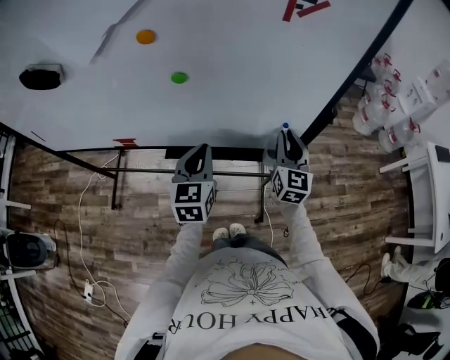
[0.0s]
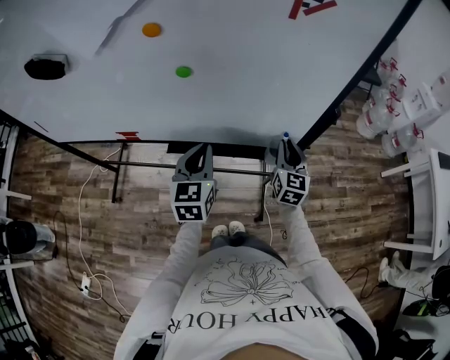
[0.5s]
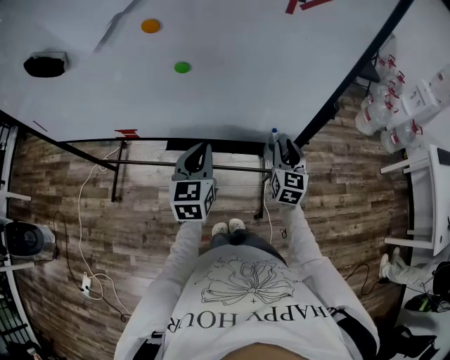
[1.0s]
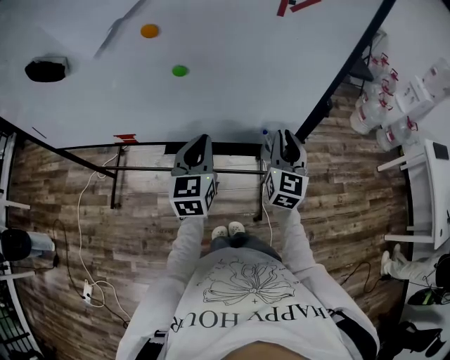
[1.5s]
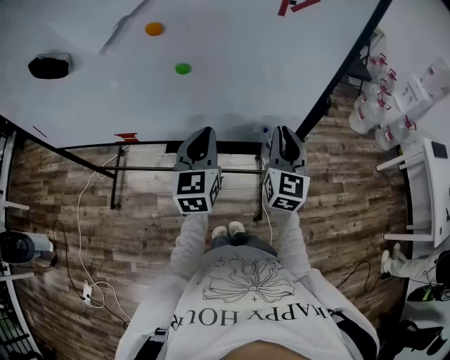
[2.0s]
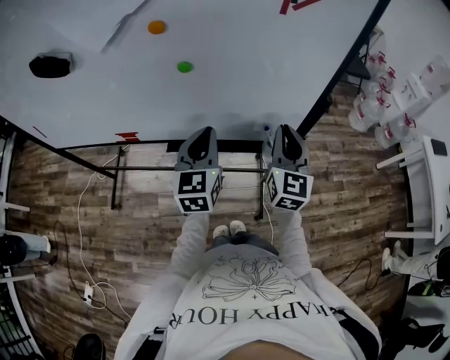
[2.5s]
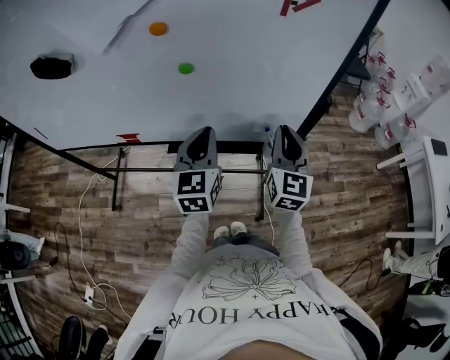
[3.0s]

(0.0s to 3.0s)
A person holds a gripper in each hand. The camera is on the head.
0.0s - 1.5s: The right gripper ends up some 5 cm from where it was.
1.5s - 3.0s: The right gripper changes place by roughly 5 cm.

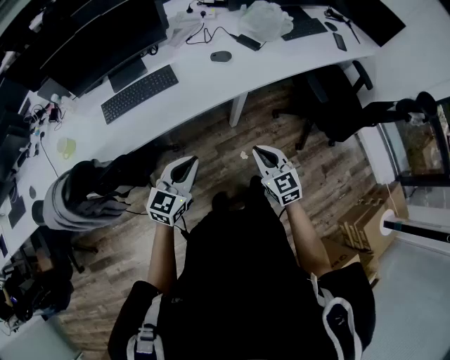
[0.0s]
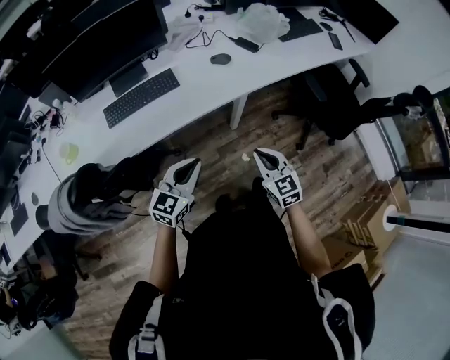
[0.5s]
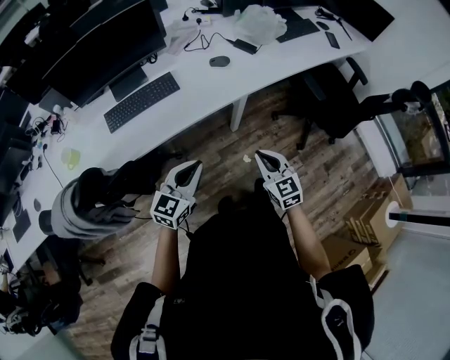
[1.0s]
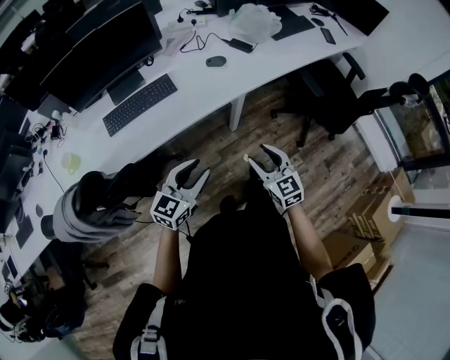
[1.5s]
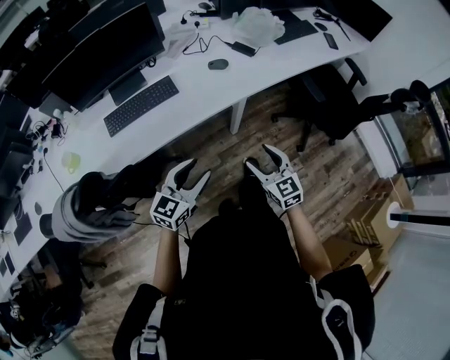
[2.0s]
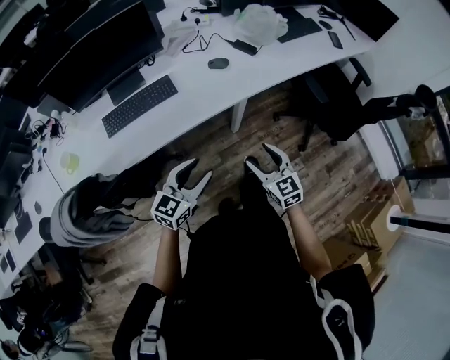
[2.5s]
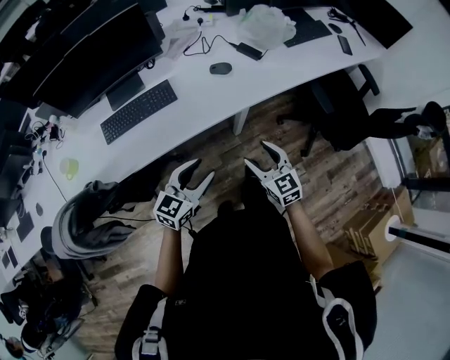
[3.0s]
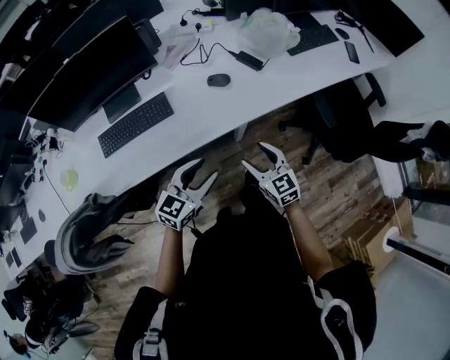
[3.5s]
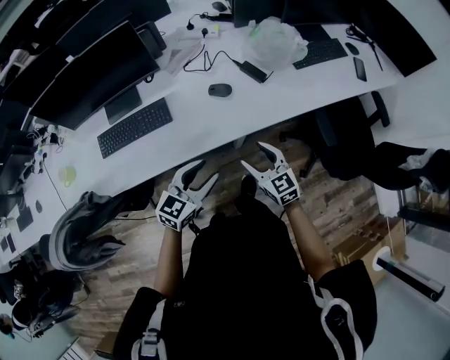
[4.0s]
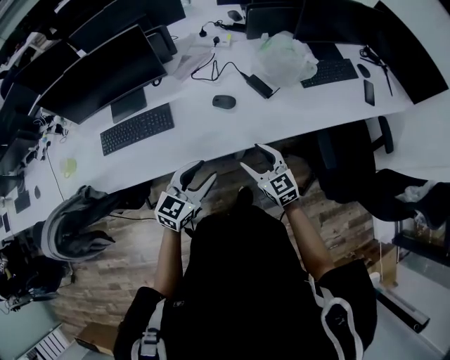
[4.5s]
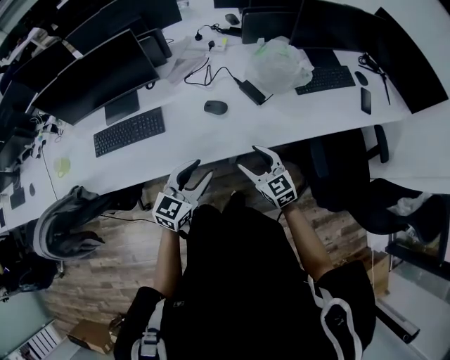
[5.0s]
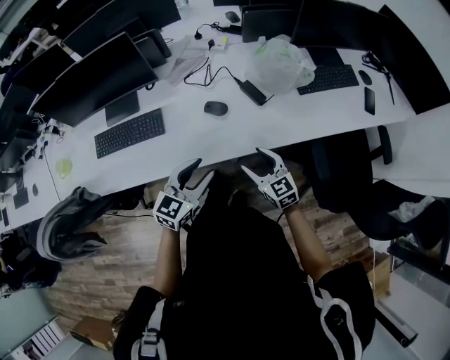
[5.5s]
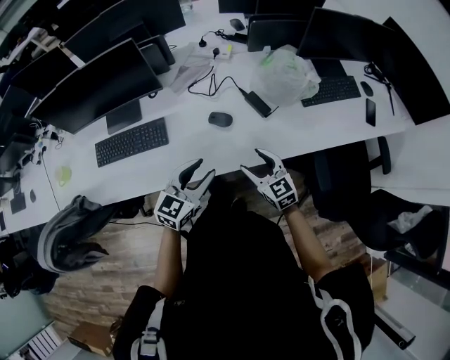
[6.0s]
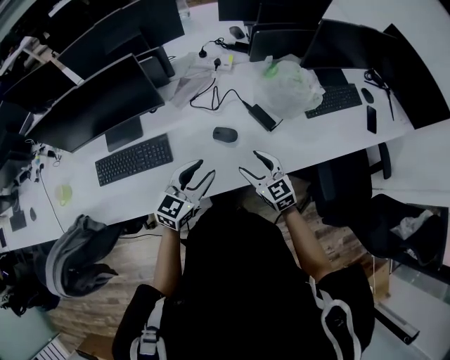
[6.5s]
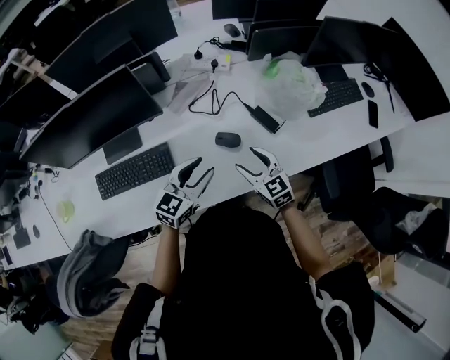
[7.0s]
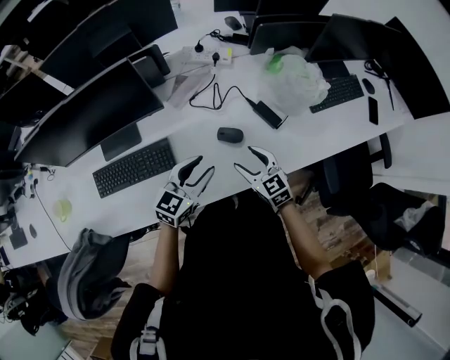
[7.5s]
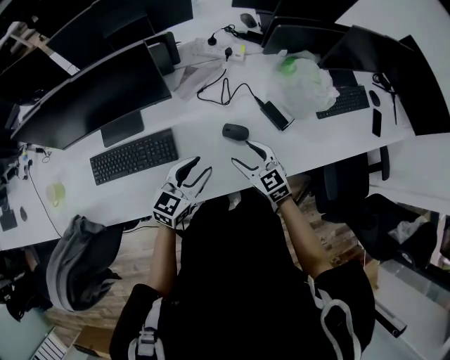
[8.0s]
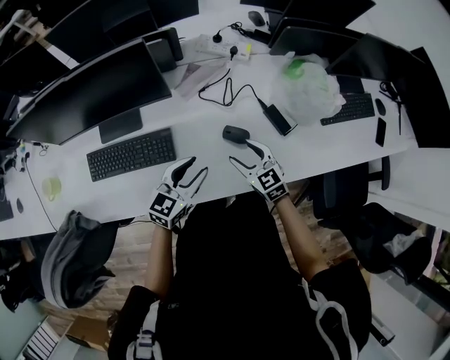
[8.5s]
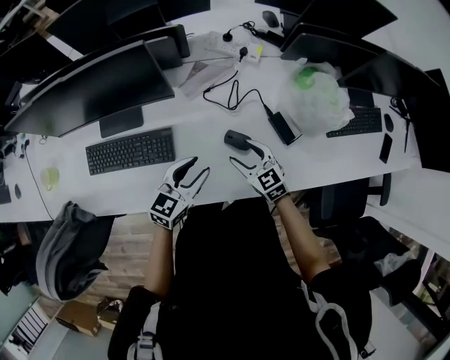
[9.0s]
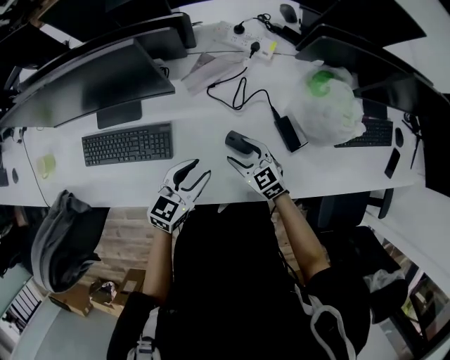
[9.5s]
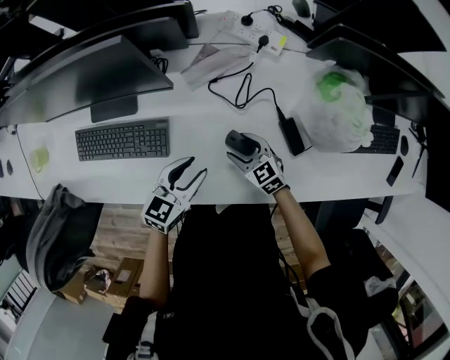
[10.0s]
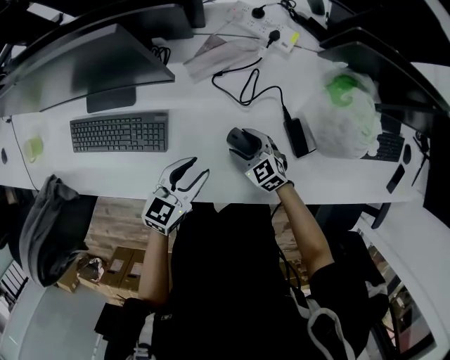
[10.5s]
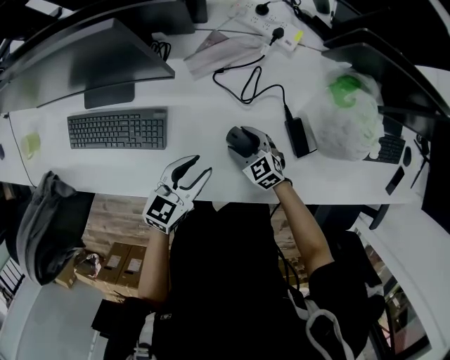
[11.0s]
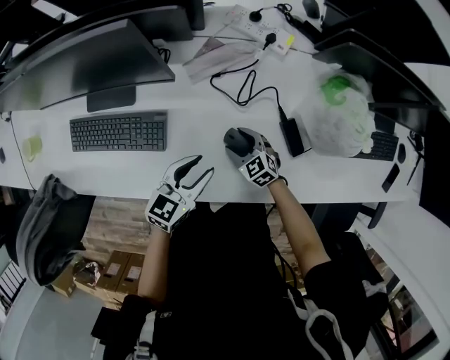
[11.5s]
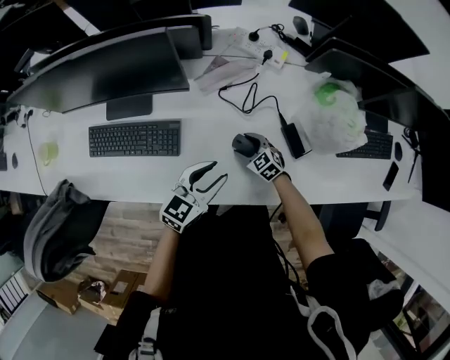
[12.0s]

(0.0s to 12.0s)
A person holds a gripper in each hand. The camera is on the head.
0.0s - 2.0s: The right gripper opens up. The left gripper opens its fingers.
2.0s - 4.0s: The left gripper shifts roughly 25 cm forward and to the right, while the right gripper heads forward, covering some 25 cm.
4.0s - 6.0s: The two grippers go approximately 10 cm forward.
6.0s - 8.0s: The right gripper travels to the left and forward by about 15 cm. Meanwhile the left gripper shifts some 15 cm forward and to the left.
8.0s - 10.0s: The left gripper goes approximately 10 cm downward and forward. The right gripper heads downward and forward, covering approximately 15 cm, and changes its angle by some 20 degrees.
10.0s - 12.0s: The left gripper ends up approximately 5 cm from where it was, while the right gripper heads downward, covering roughly 5 cm.

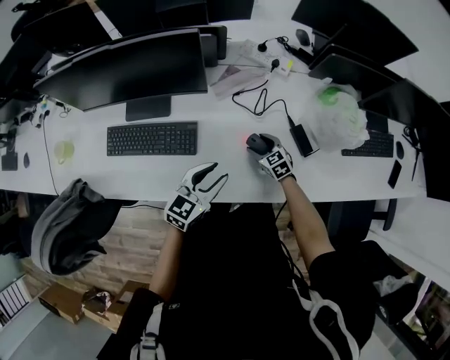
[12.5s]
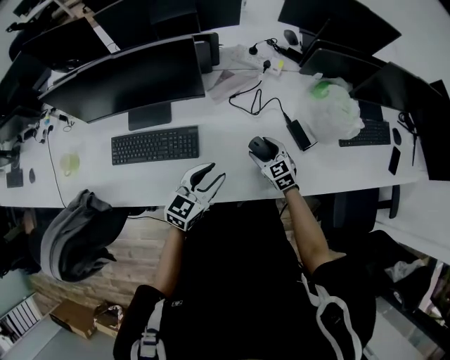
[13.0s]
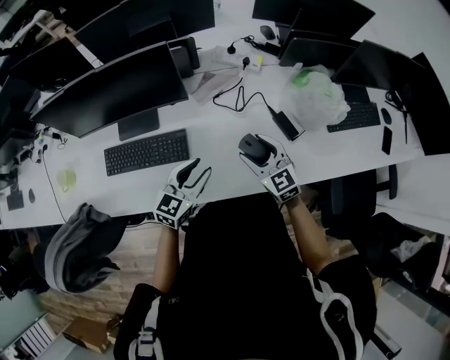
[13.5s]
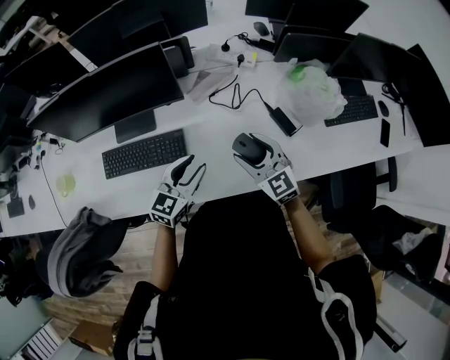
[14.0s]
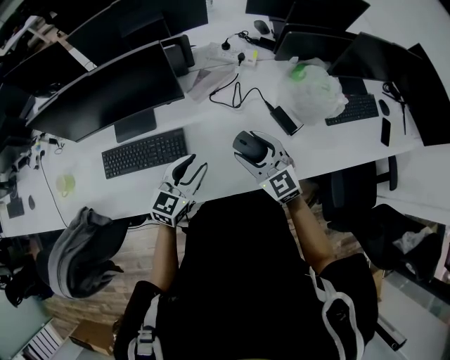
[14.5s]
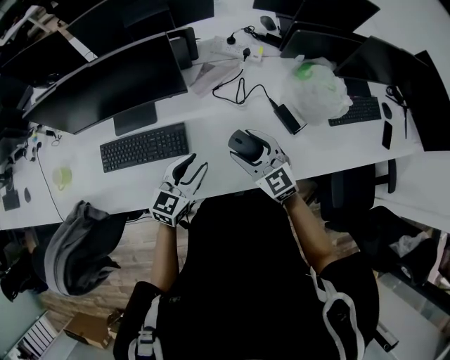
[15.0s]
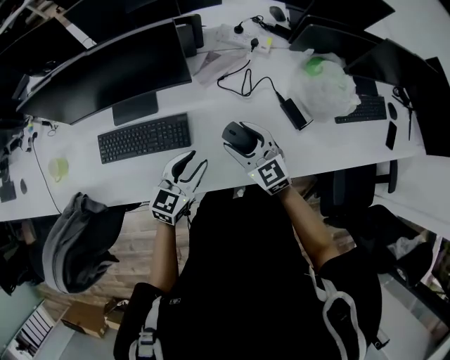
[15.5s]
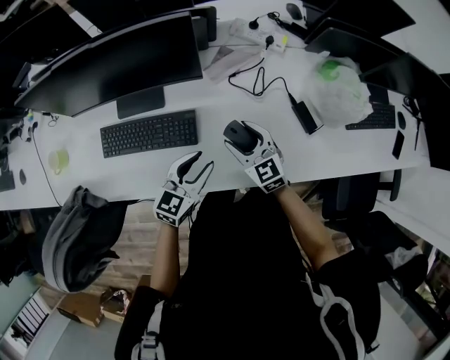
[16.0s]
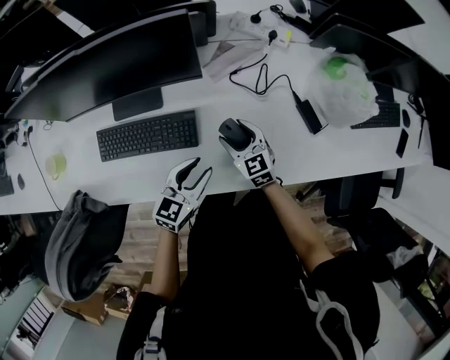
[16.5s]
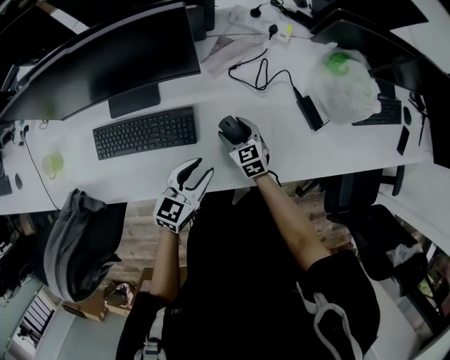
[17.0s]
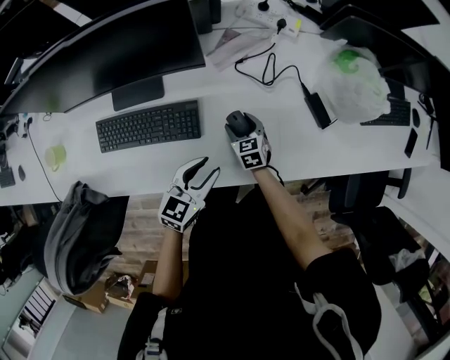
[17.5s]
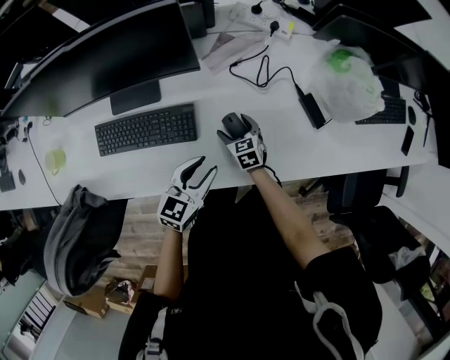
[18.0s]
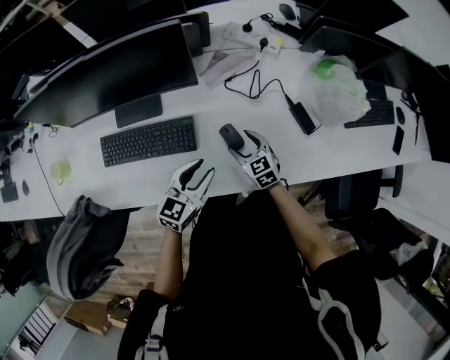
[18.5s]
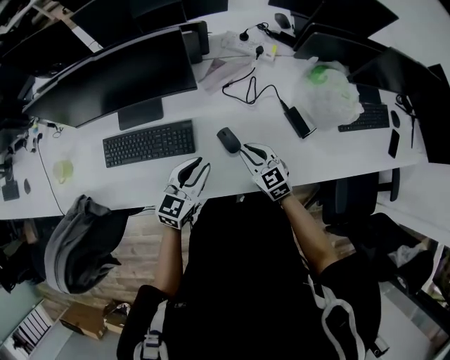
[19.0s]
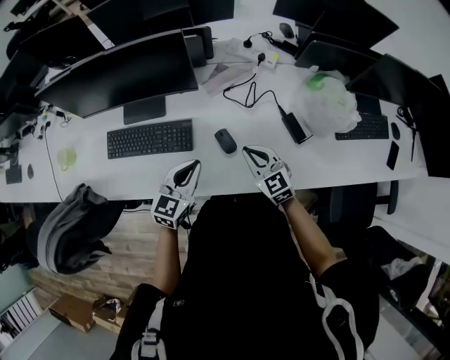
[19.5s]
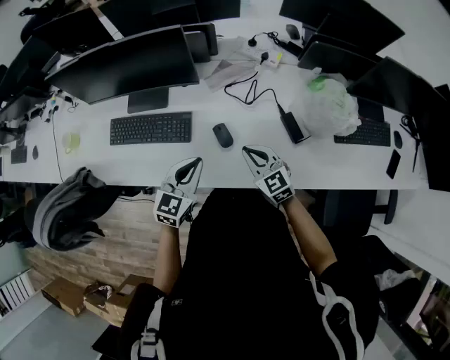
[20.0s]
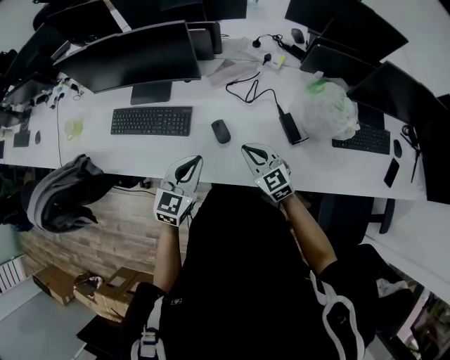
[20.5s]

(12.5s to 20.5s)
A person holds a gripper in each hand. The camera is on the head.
12.5s - 14.5s: The right gripper heads upward, covering about 25 cm, and turns by approximately 30 degrees.
14.5s - 16.5s: The right gripper heads downward and to the left, covering approximately 20 cm. The left gripper goes roughly 5 cm downward.
16.5s - 18.5s: The right gripper moves approximately 10 cm downward and comes back.
18.5s - 20.5s: The left gripper moves upward, to the right and backward, approximately 10 cm, turns by roughly 20 degrees, and closes. Meanwhile the right gripper is displaced upward, to the right and backward by some 15 cm, rotates approximately 20 degrees, and closes up.

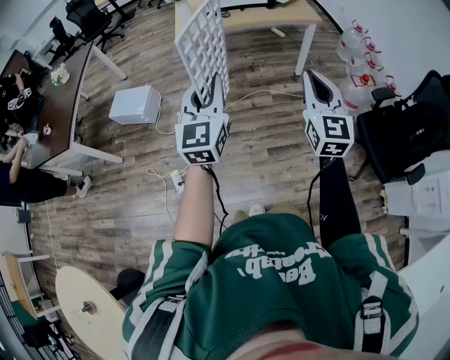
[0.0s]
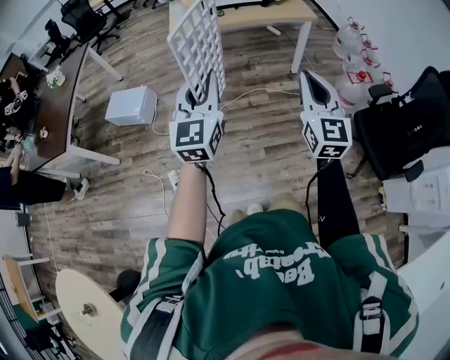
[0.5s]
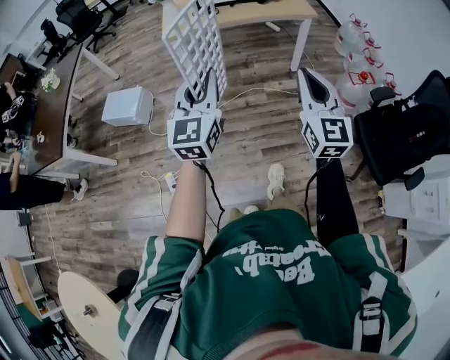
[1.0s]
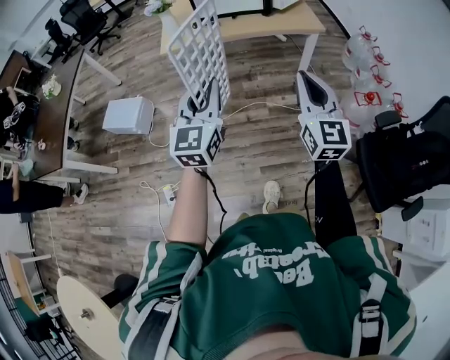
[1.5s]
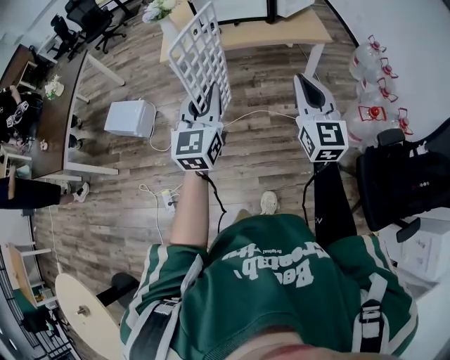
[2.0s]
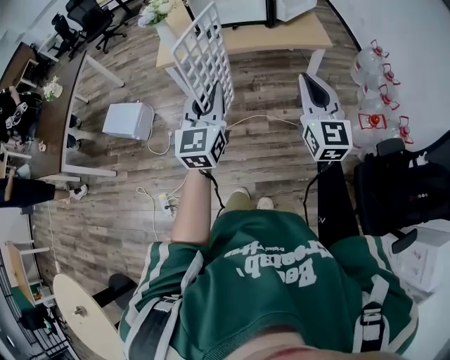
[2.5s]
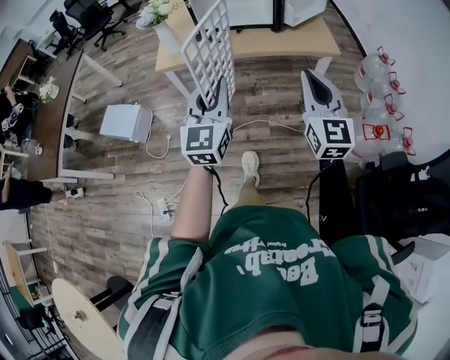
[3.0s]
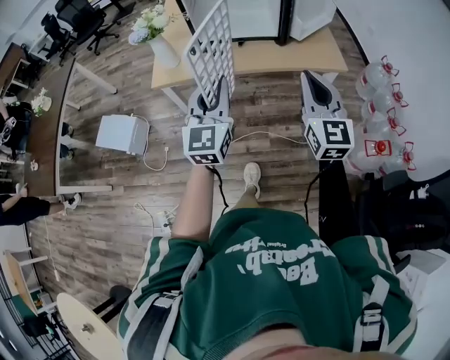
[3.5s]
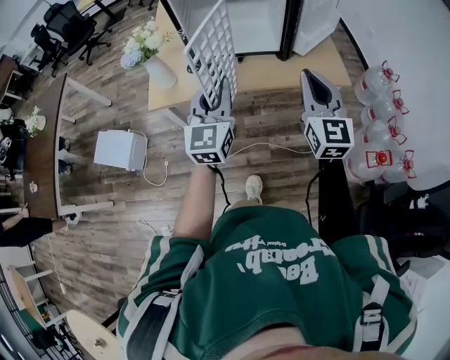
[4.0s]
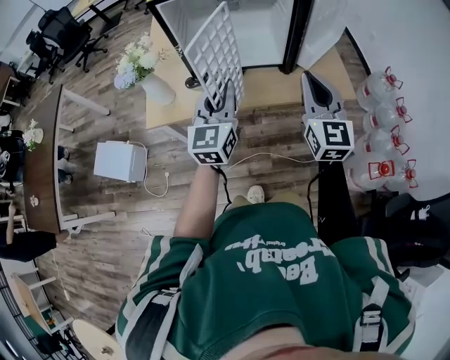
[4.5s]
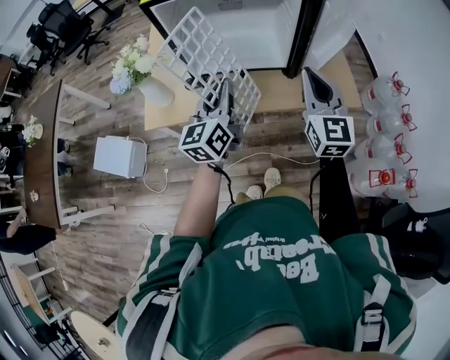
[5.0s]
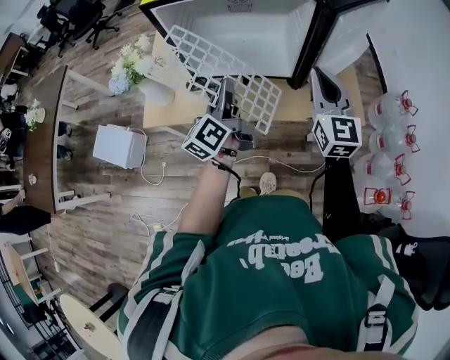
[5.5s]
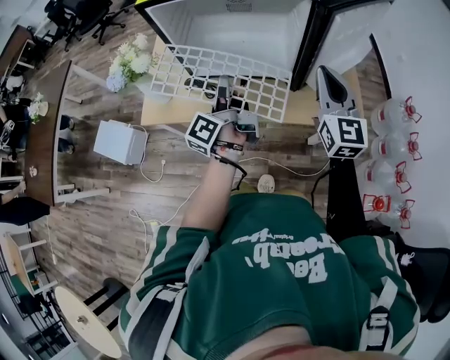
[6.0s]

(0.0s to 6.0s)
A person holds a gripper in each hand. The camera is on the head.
0.0s - 2.0s: The left gripper shifts some 30 cm forward and to the right, while the right gripper travels forward by approximately 30 cm.
2.0s - 4.0s: The two grippers go approximately 35 cm forward.
4.0s - 6.0s: The left gripper travels forward and downward by roughly 25 cm, and rolls counterclockwise, seen from behind, by approximately 70 degrees. The right gripper moves forward and to the right, approximately 25 cm.
